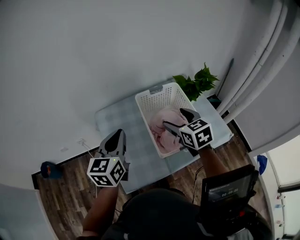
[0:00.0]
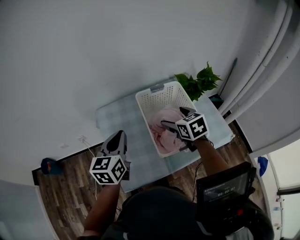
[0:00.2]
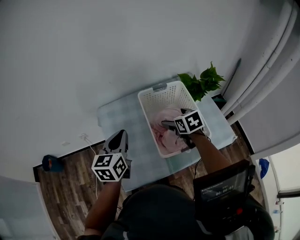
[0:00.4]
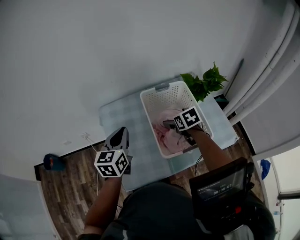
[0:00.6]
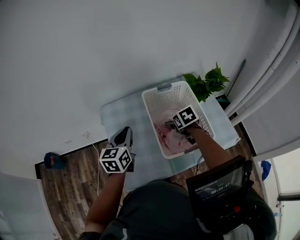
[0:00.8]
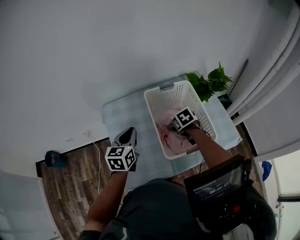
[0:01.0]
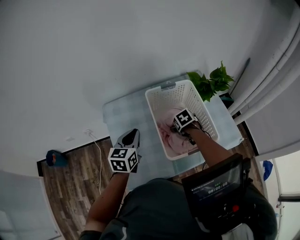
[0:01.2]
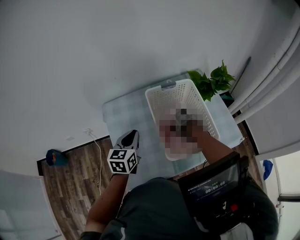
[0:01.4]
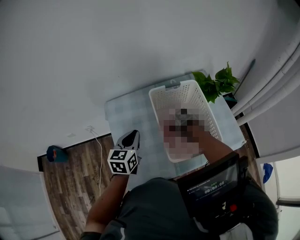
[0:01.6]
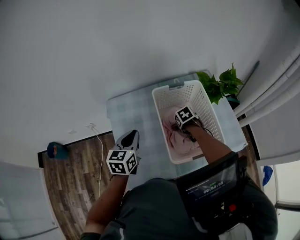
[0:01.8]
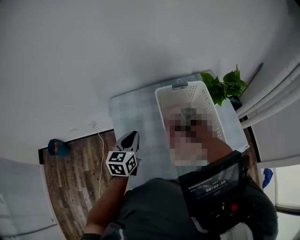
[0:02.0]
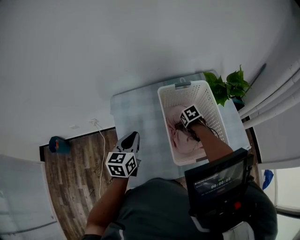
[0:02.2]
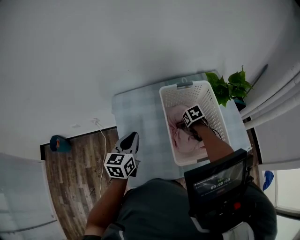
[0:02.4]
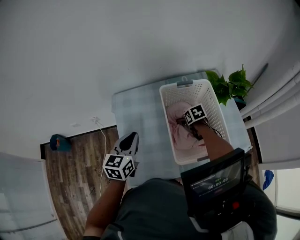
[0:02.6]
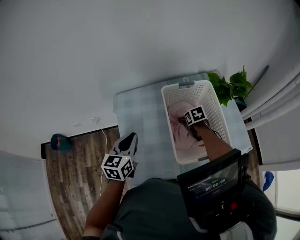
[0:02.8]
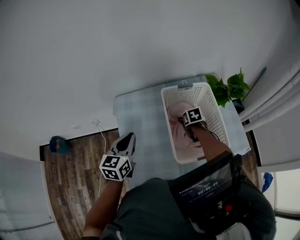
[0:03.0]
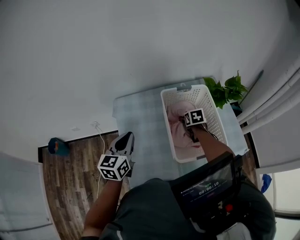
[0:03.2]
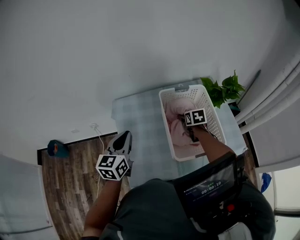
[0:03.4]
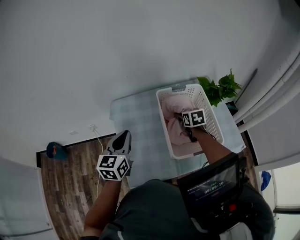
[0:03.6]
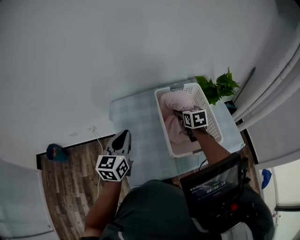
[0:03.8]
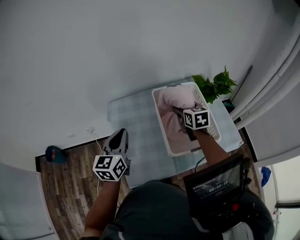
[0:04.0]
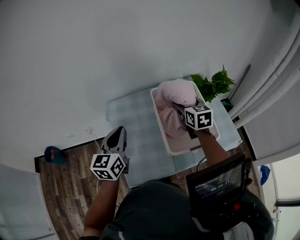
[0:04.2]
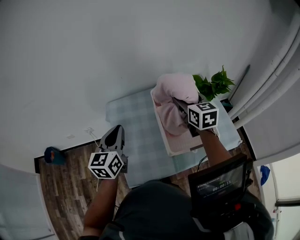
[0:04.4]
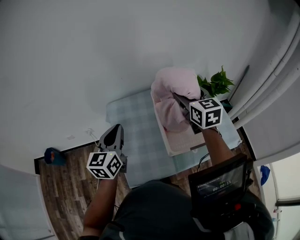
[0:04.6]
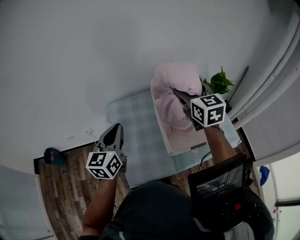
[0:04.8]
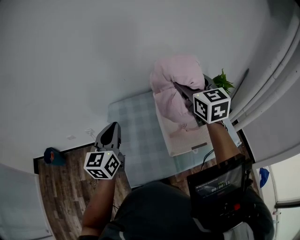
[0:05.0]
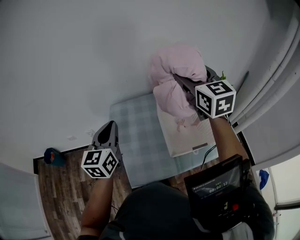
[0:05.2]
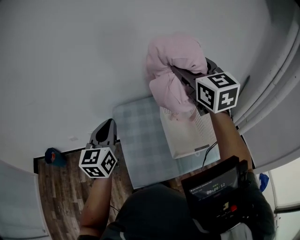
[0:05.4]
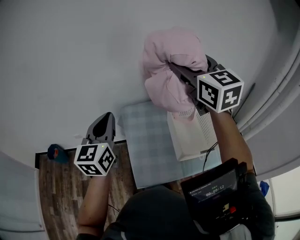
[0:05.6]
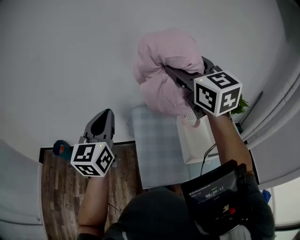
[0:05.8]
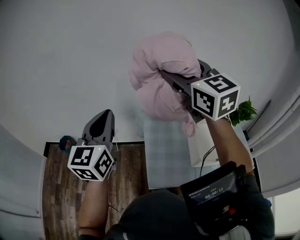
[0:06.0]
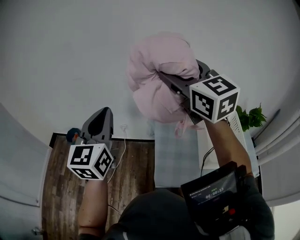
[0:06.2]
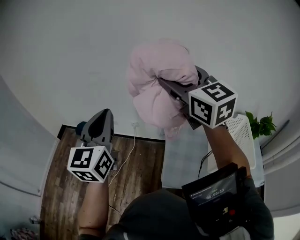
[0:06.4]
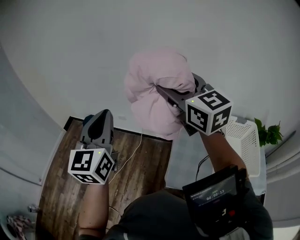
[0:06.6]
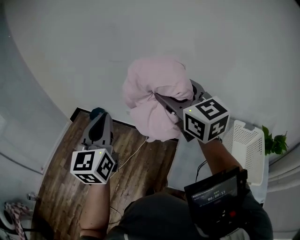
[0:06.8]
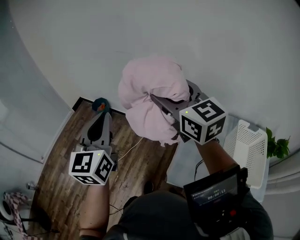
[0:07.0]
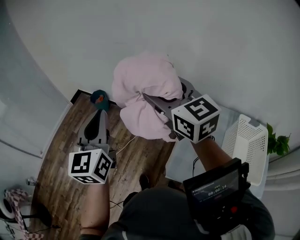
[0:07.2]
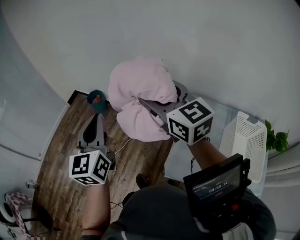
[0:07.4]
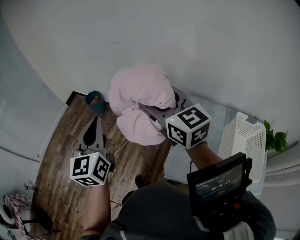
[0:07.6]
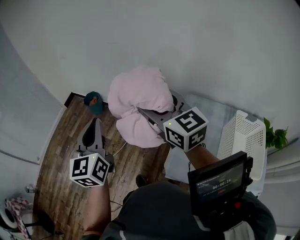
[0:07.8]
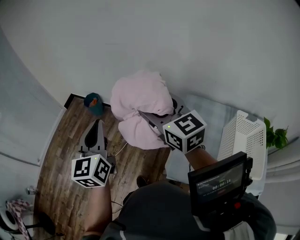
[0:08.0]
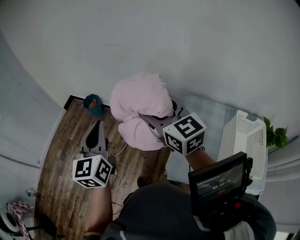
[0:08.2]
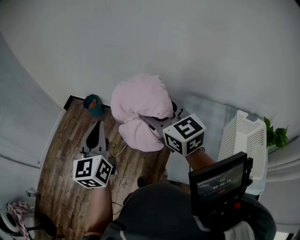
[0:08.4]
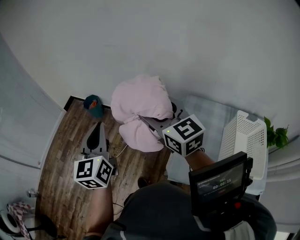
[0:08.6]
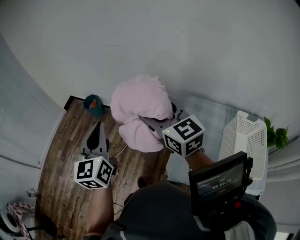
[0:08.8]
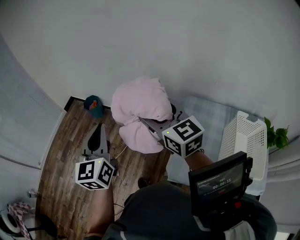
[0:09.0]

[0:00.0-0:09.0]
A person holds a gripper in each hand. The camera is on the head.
0:00.0 to 0:01.6: The left gripper shifts some 15 cm downward. The right gripper shifts about 25 cm downward, and tilts its fingers some 40 degrees downward.
0:01.6 to 0:03.0: The left gripper changes place by some 5 cm.
0:03.0 to 0:04.4: The right gripper moves upward, roughly 30 cm, and points its fingers roughly 40 degrees further upward, while the left gripper shifts some 10 cm upward.
0:04.4 to 0:06.0: The two grippers go approximately 30 cm upward and to the left. The right gripper turns by some 40 degrees. Meanwhile the left gripper rotates approximately 20 degrees.
0:06.0 to 0:07.6: The right gripper ends up approximately 35 cm from where it was, and changes its angle by about 30 degrees; the left gripper shifts by some 25 cm, and changes its angle by roughly 30 degrees.
0:07.6 to 0:09.0: The grippers stay close to where they were, moving slightly.

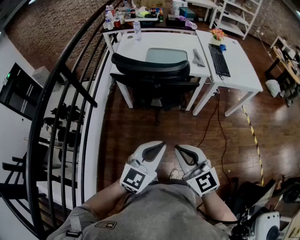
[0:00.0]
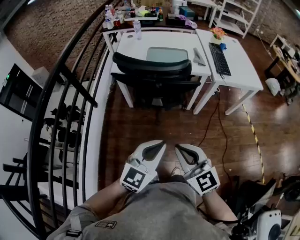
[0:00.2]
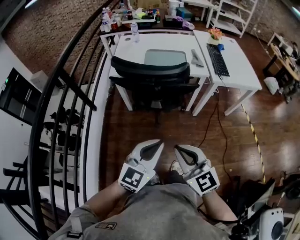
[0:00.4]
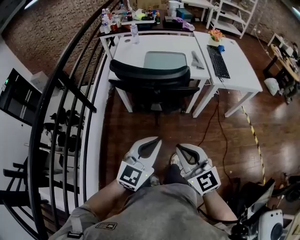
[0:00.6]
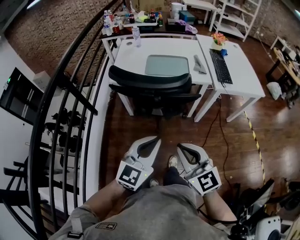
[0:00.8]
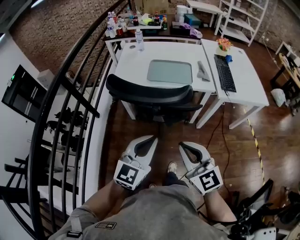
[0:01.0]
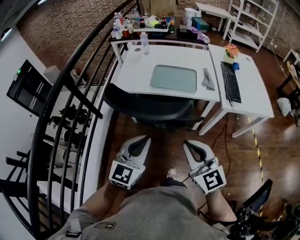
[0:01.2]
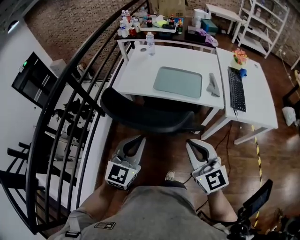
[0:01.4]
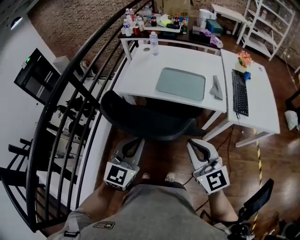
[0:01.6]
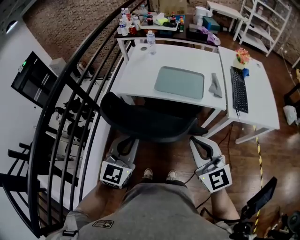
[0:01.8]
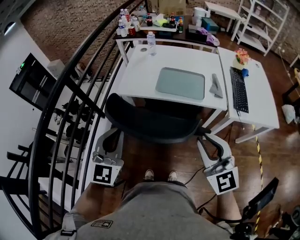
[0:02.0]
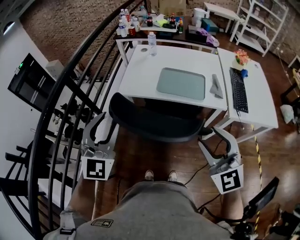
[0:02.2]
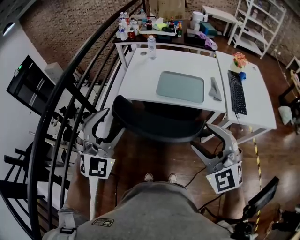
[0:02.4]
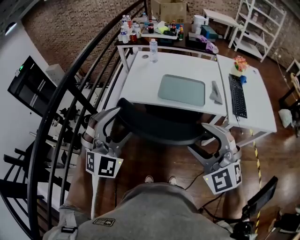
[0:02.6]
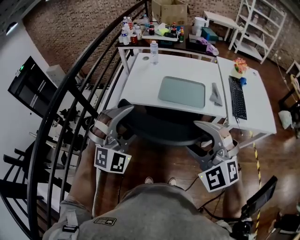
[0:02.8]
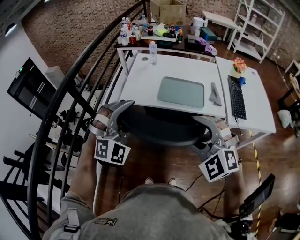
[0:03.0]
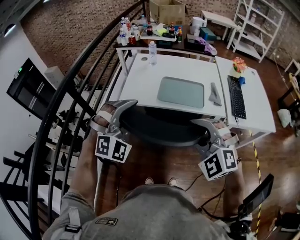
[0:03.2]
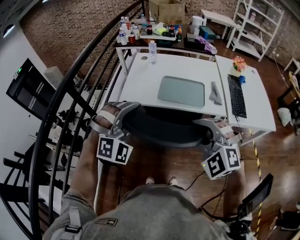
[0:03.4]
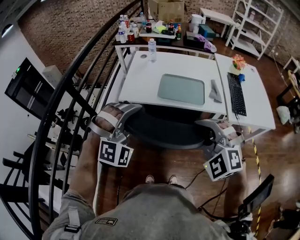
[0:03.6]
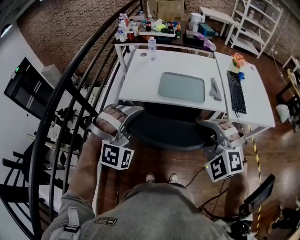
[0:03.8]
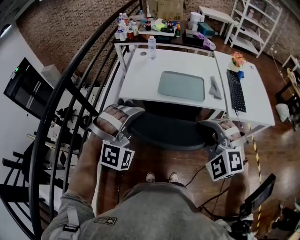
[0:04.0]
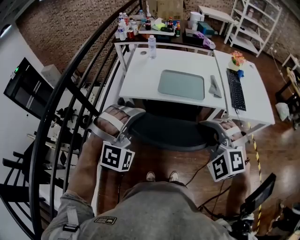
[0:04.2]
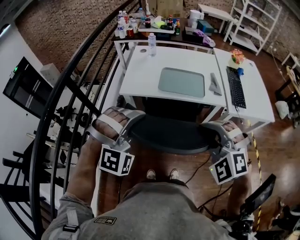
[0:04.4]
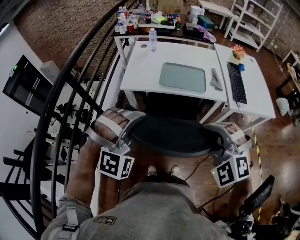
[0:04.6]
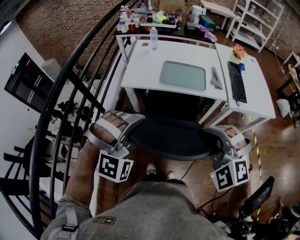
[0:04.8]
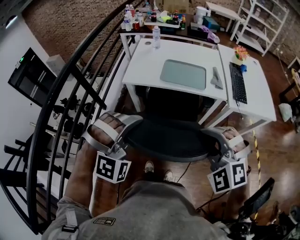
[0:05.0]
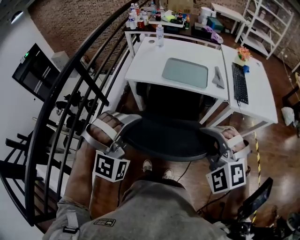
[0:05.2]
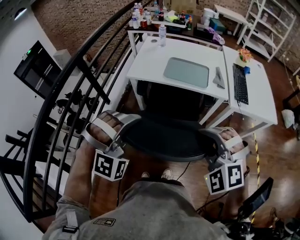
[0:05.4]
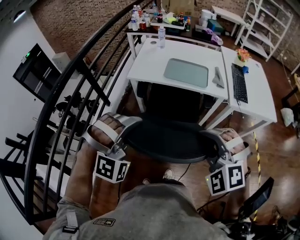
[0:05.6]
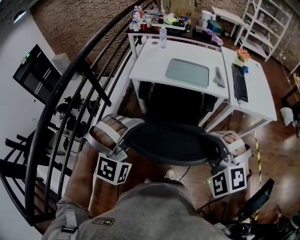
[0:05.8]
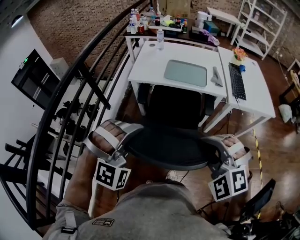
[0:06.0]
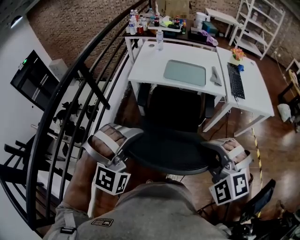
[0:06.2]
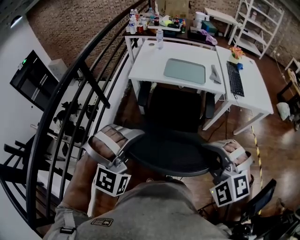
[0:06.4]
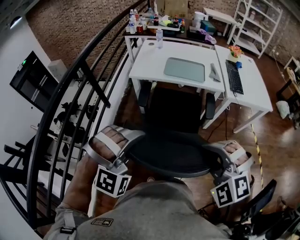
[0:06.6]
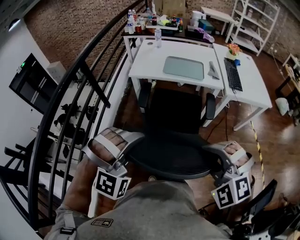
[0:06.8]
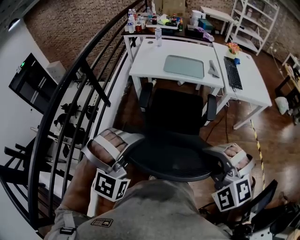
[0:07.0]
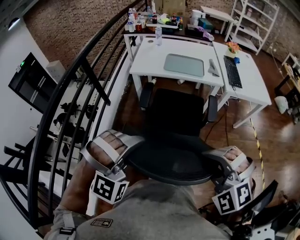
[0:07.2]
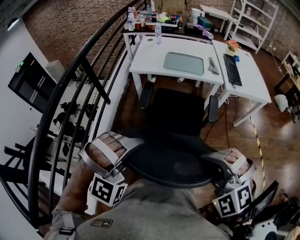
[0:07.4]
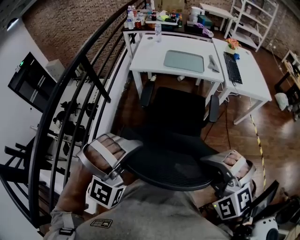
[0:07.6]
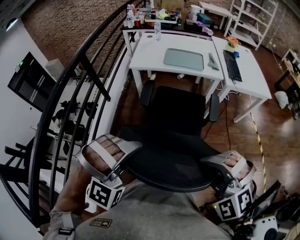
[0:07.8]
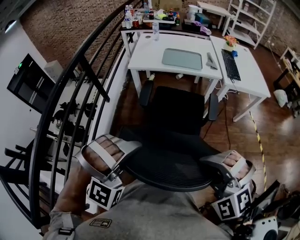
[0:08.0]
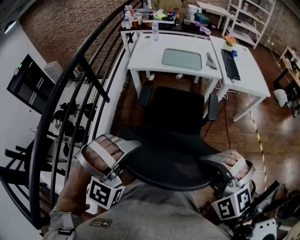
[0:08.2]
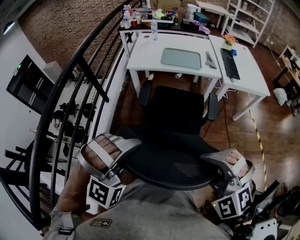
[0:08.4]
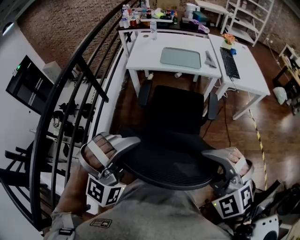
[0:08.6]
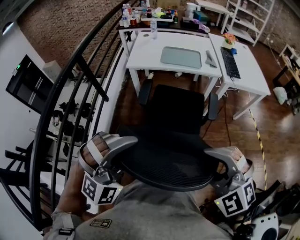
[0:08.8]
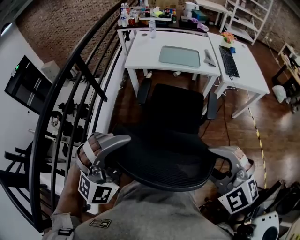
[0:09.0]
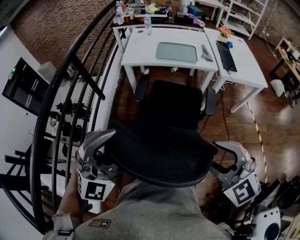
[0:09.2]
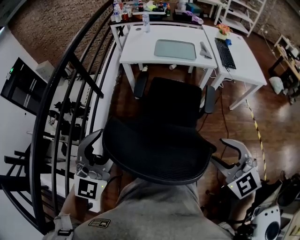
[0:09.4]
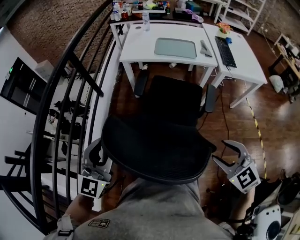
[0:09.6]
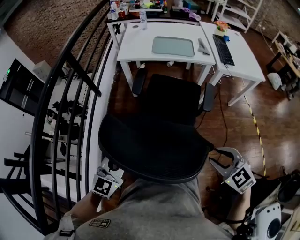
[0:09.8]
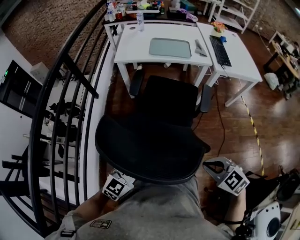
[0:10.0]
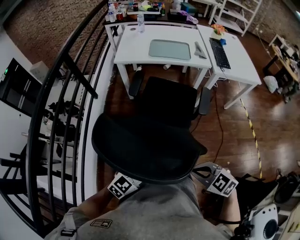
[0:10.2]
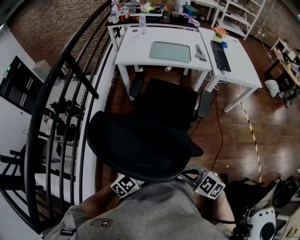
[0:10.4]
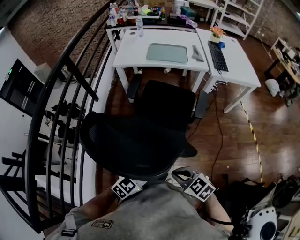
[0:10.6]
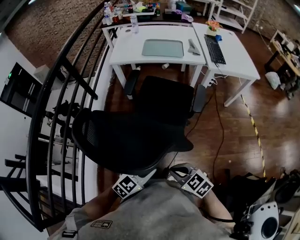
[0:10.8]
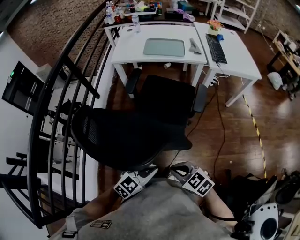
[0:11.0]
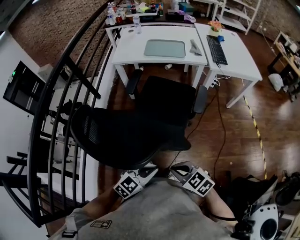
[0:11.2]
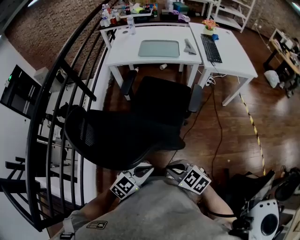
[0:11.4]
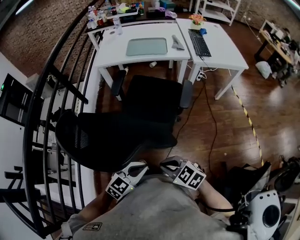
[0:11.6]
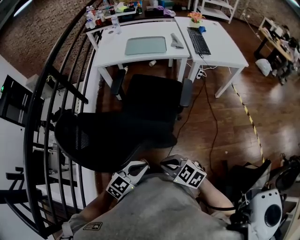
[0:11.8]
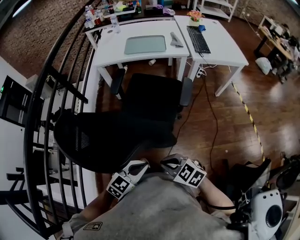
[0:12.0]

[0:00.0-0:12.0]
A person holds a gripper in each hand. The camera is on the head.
0:00.0 to 0:01.6: The two grippers go approximately 25 cm forward. The left gripper rotates approximately 20 degrees.
0:01.6 to 0:03.0: The right gripper travels to the left and forward by about 10 cm, rotates around the line of its fingers by about 50 degrees, counterclockwise from behind, and opens up, while the left gripper moves forward, upward and to the left, roughly 15 cm, rotates around the line of its fingers by some 60 degrees, clockwise from behind, and opens.
0:03.0 to 0:04.4: The left gripper moves backward, approximately 5 cm, and closes up. The right gripper closes.
0:04.4 to 0:06.0: Both grippers travel together backward, approximately 15 cm.
0:06.0 to 0:07.6: Both grippers travel together backward, some 15 cm.
0:07.6 to 0:09.0: The right gripper opens up, while the left gripper changes its angle by roughly 30 degrees, and opens.
0:09.0 to 0:10.4: The two grippers go approximately 25 cm downward. The right gripper changes its angle by approximately 40 degrees, and closes, while the left gripper rotates around the line of its fingers by approximately 60 degrees, counterclockwise from behind, and closes its fingers.
0:10.4 to 0:12.0: The left gripper changes place by about 5 cm.

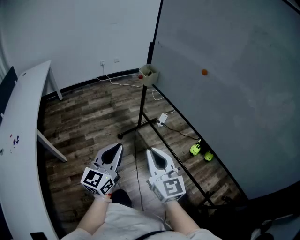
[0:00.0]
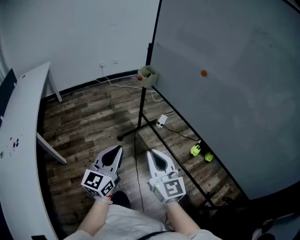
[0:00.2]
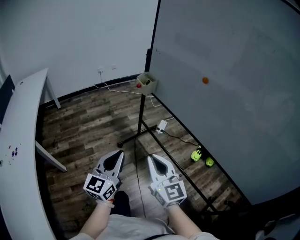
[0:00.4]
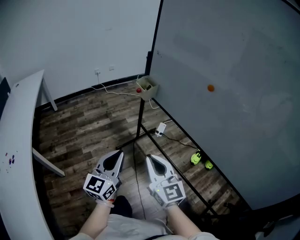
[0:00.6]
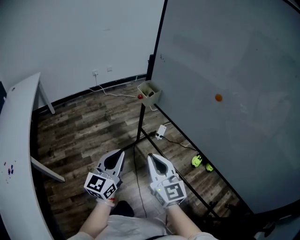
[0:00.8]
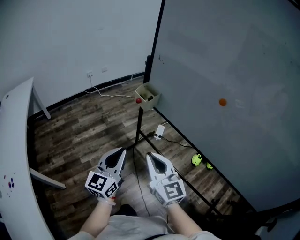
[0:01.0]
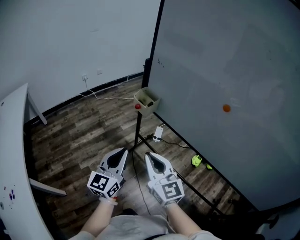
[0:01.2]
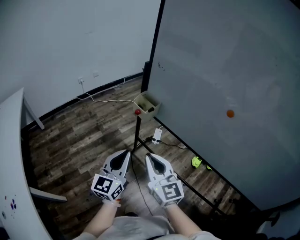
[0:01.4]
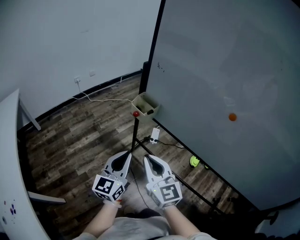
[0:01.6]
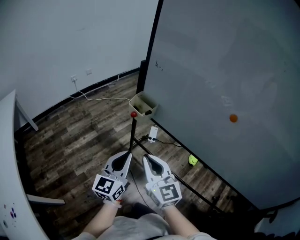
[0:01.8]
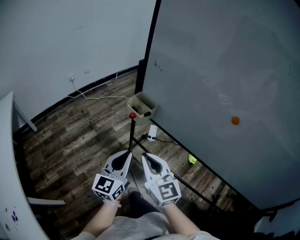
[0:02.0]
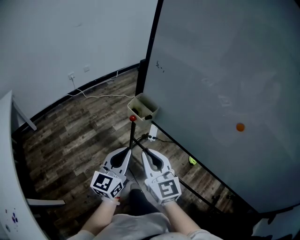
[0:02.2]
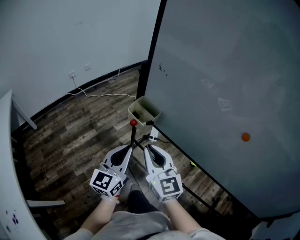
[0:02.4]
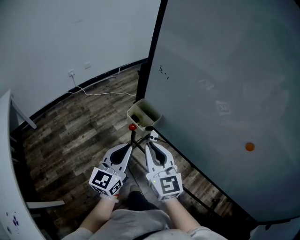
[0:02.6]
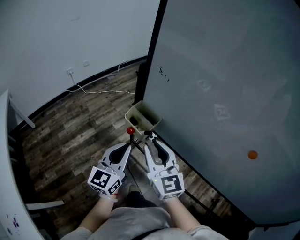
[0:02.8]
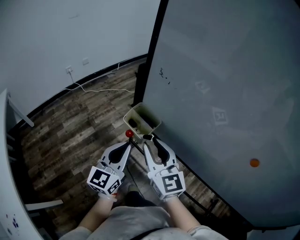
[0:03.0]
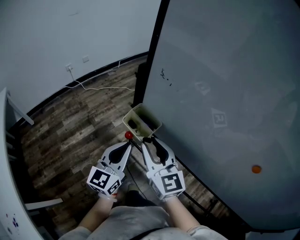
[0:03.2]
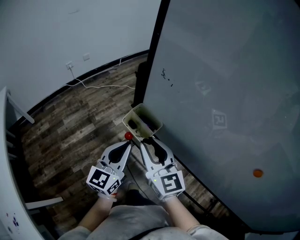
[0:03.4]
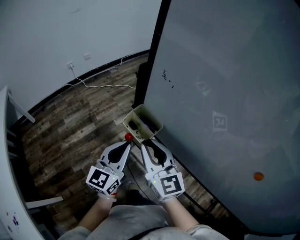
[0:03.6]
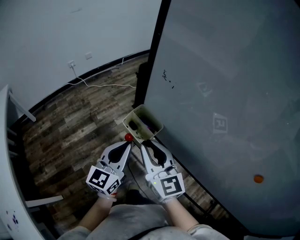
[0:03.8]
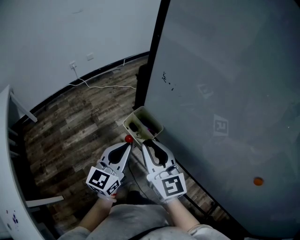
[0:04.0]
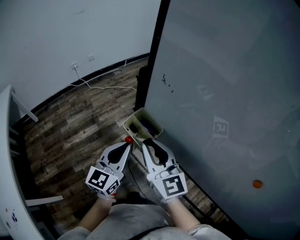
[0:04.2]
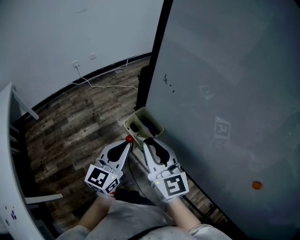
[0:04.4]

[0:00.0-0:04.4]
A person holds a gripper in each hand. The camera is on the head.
0:00.0 to 0:01.4: The grippers both shift forward by about 30 cm.
0:01.4 to 0:03.0: Both grippers travel together forward, roughly 25 cm. The right gripper opens its fingers.
0:03.0 to 0:04.4: The grippers move only a little.
